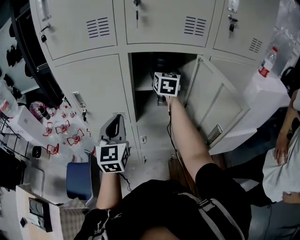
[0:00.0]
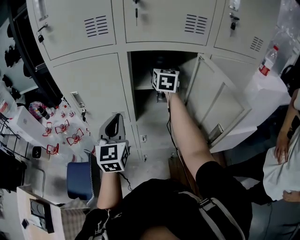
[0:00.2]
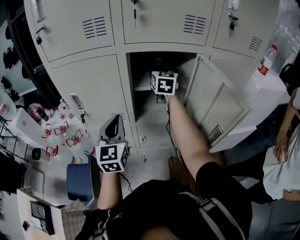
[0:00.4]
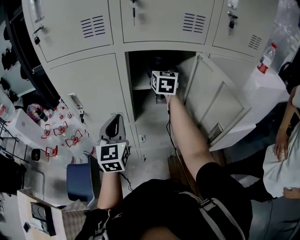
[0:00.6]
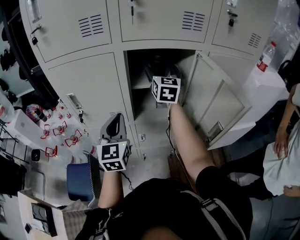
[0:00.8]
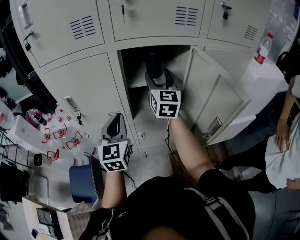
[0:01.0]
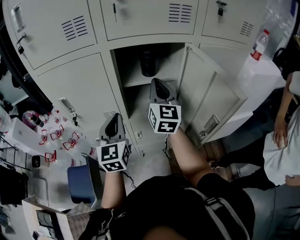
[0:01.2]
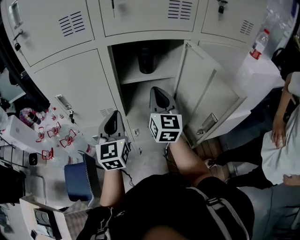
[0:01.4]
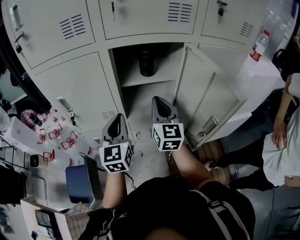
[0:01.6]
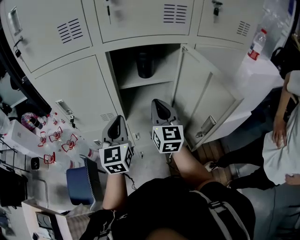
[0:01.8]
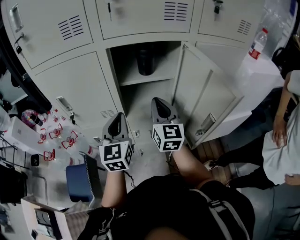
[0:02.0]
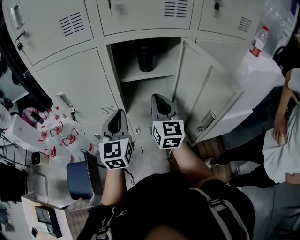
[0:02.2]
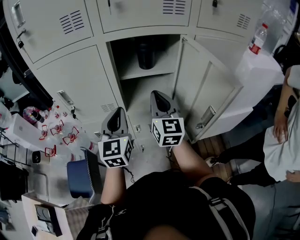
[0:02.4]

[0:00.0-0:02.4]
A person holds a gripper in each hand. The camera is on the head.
0:00.0 to 0:01.2: The right gripper is displaced backward by approximately 15 cm, and closes.
0:01.2 to 0:02.4: The right gripper goes approximately 5 cm backward.

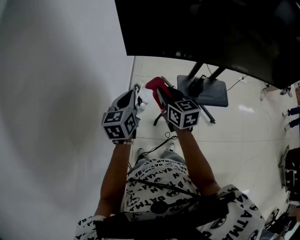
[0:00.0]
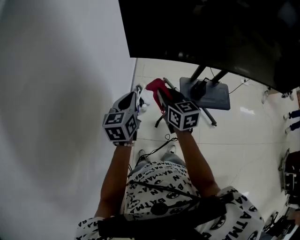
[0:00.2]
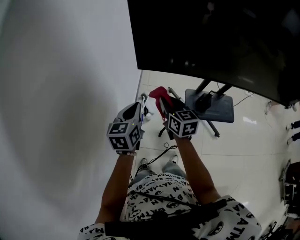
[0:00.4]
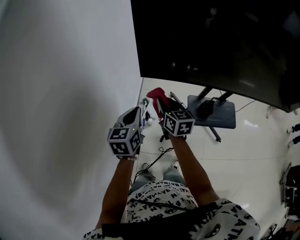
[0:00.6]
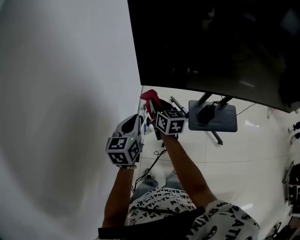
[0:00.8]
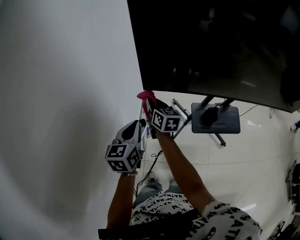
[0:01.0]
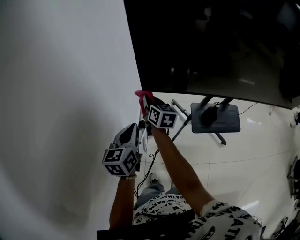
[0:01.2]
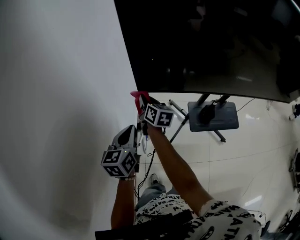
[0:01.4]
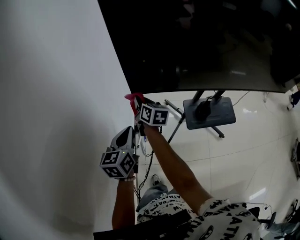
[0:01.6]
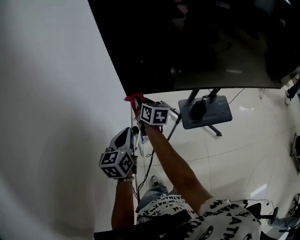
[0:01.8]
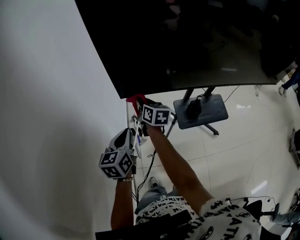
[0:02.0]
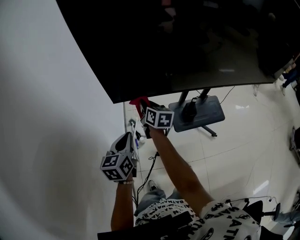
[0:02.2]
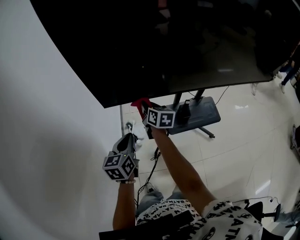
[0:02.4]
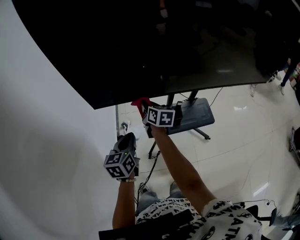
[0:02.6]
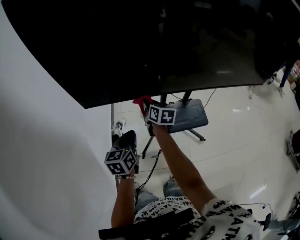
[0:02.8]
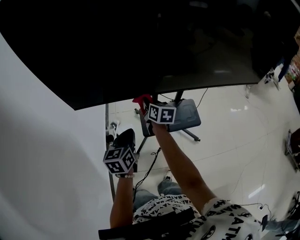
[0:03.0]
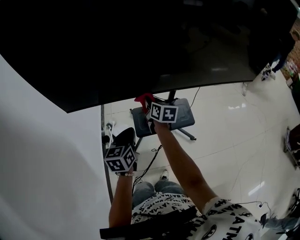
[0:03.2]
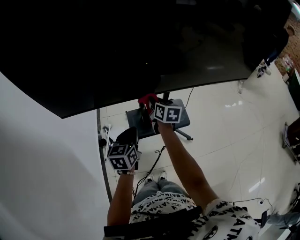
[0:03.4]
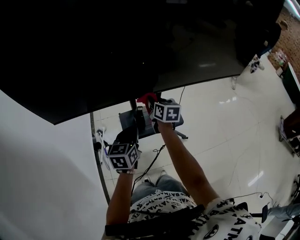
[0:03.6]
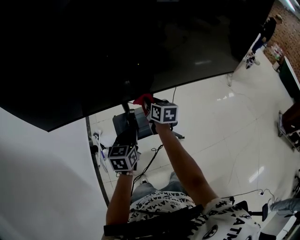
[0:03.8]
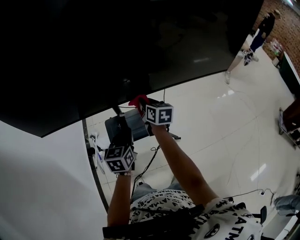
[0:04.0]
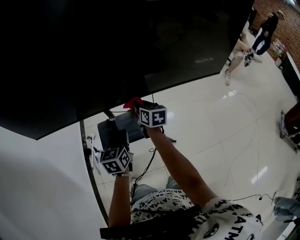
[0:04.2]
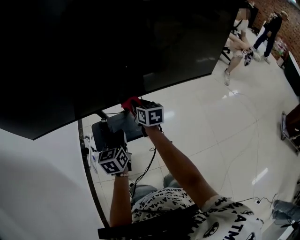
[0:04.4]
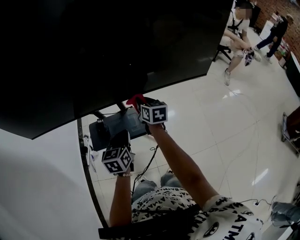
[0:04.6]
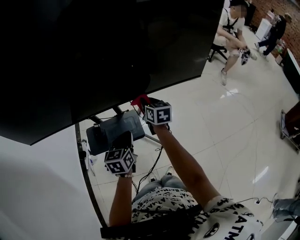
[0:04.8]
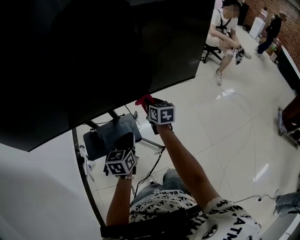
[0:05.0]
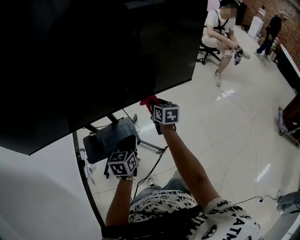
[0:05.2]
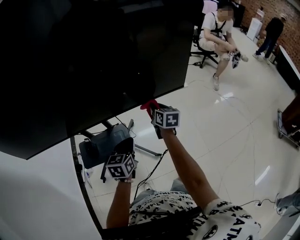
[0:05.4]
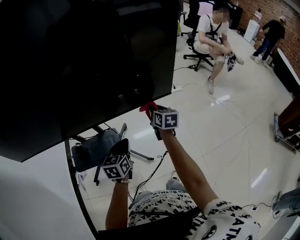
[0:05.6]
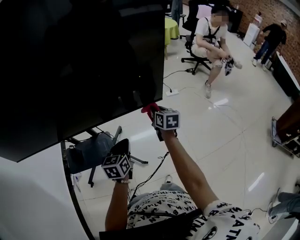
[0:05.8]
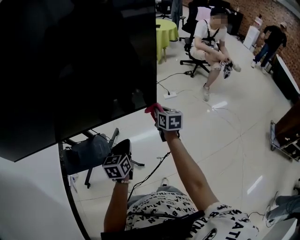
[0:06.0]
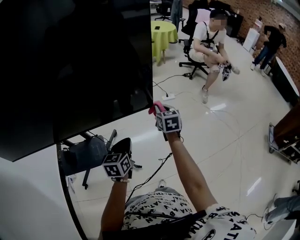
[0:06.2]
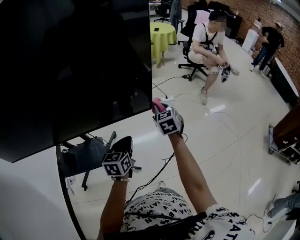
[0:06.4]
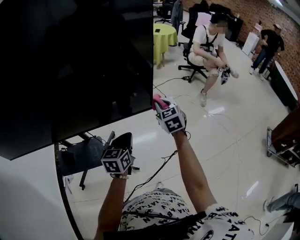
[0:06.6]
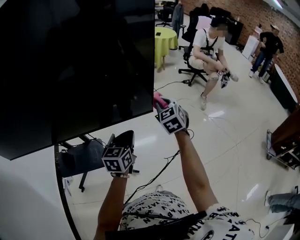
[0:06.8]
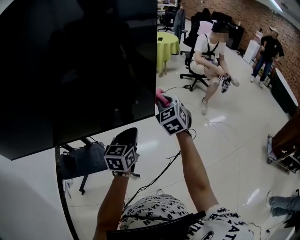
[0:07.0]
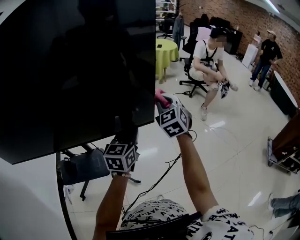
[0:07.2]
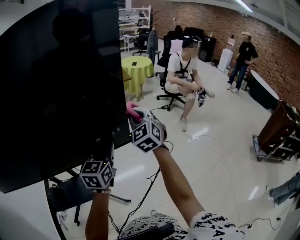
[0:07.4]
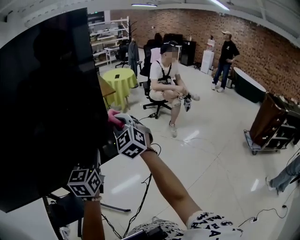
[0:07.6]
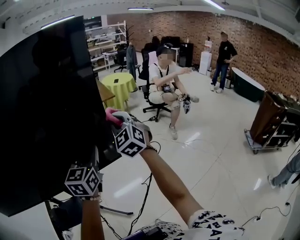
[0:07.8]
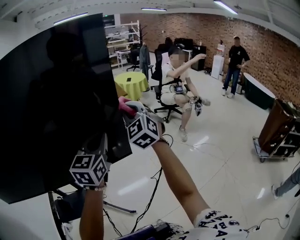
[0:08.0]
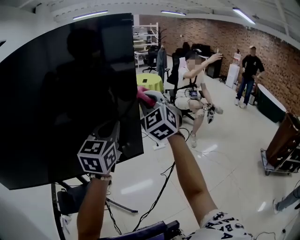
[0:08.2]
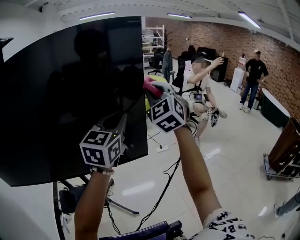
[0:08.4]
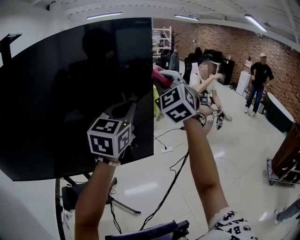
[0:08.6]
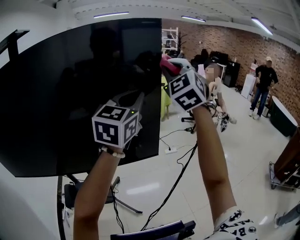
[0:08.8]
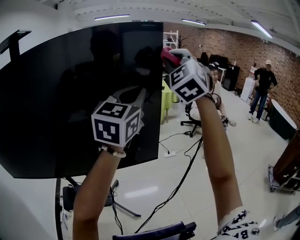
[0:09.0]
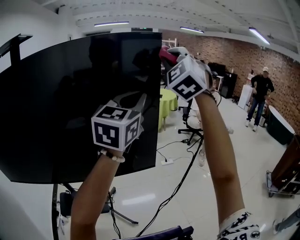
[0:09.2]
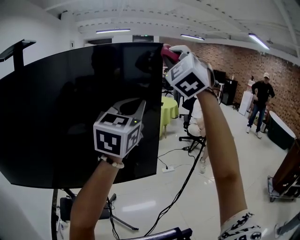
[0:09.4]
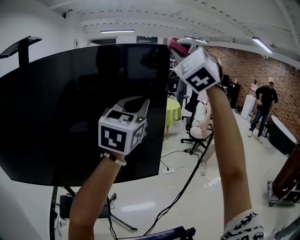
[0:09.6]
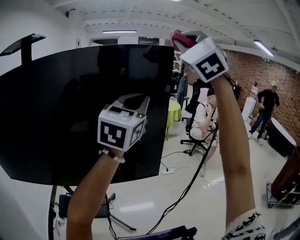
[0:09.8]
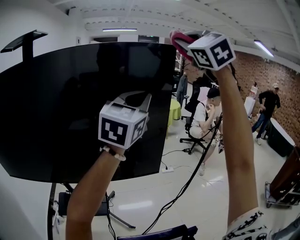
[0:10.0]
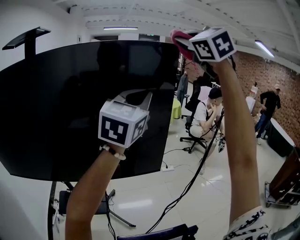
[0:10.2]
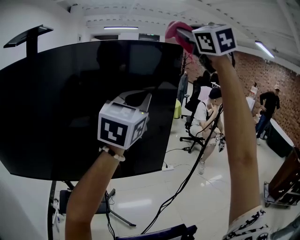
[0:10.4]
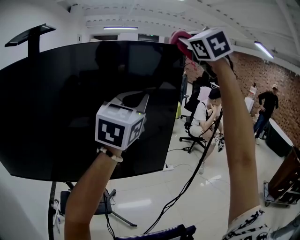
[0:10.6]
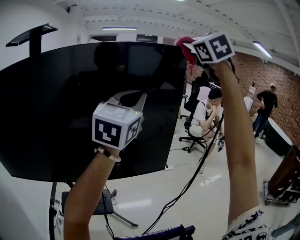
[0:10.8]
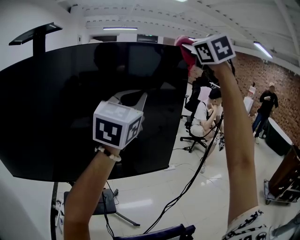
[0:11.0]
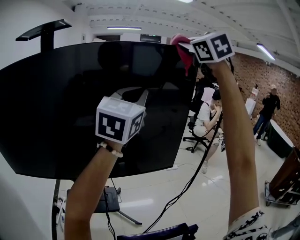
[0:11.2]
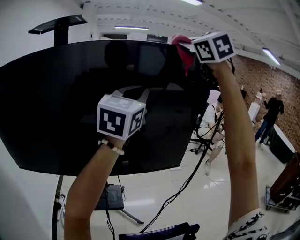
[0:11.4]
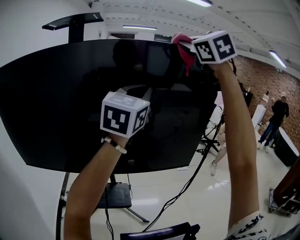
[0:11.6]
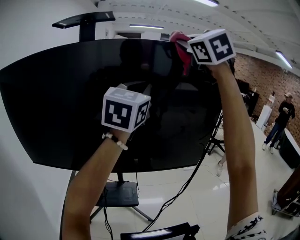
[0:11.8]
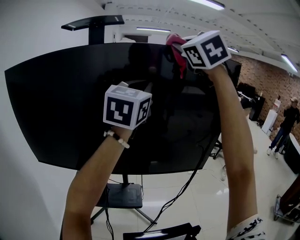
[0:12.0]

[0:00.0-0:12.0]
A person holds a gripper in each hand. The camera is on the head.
0:00.0 to 0:01.6: The right gripper travels forward and to the left by some 20 cm, and rotates some 20 degrees. The left gripper shifts roughly 5 cm to the left.
0:01.6 to 0:03.0: The two grippers go some 35 cm to the right.
0:03.0 to 0:04.4: Both grippers move to the right, about 35 cm.
0:04.4 to 0:06.0: Both grippers move to the right, approximately 35 cm.
0:06.0 to 0:07.6: The two grippers go roughly 25 cm upward. The right gripper rolls counterclockwise, seen from behind, by some 60 degrees; the left gripper swivels roughly 30 degrees.
0:07.6 to 0:09.0: The two grippers go approximately 30 cm upward. The right gripper turns by approximately 30 degrees. The left gripper turns by approximately 20 degrees.
0:09.0 to 0:10.4: The left gripper shifts by roughly 5 cm. The right gripper shifts about 15 cm upward, and swivels approximately 20 degrees.
0:10.4 to 0:12.0: The two grippers go roughly 30 cm to the left.

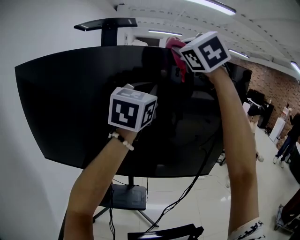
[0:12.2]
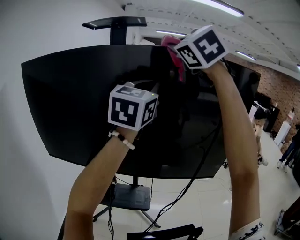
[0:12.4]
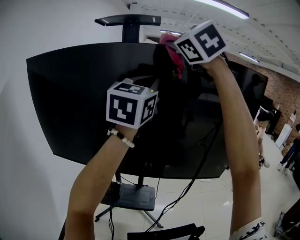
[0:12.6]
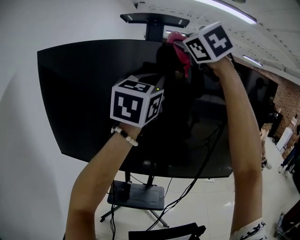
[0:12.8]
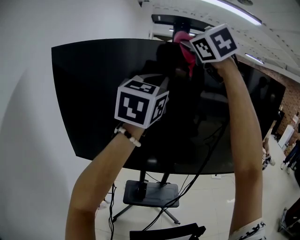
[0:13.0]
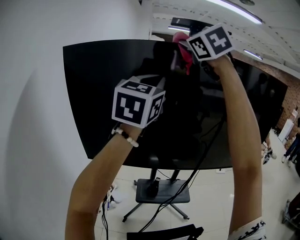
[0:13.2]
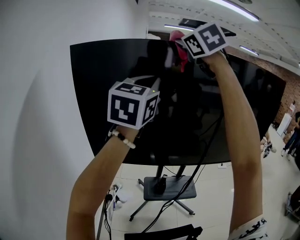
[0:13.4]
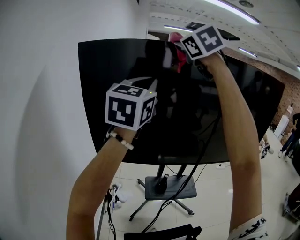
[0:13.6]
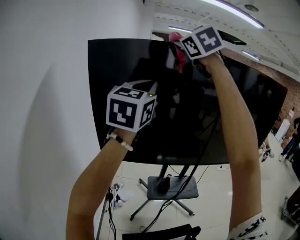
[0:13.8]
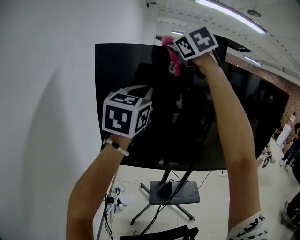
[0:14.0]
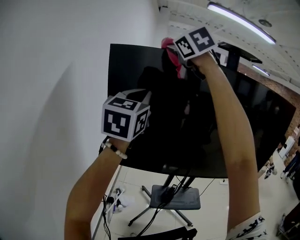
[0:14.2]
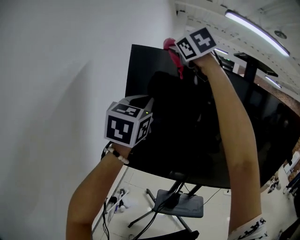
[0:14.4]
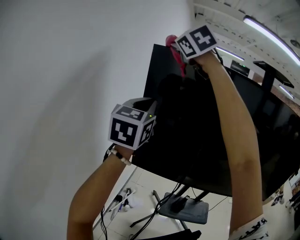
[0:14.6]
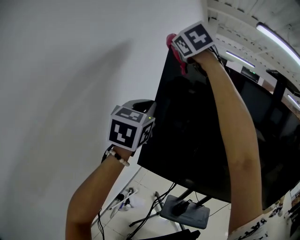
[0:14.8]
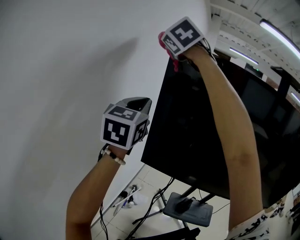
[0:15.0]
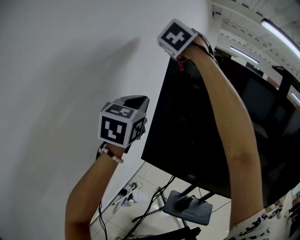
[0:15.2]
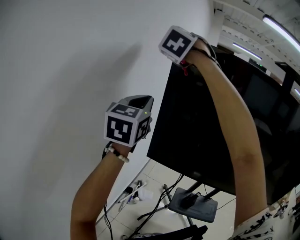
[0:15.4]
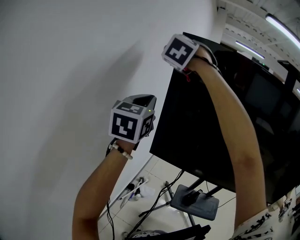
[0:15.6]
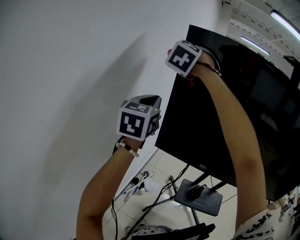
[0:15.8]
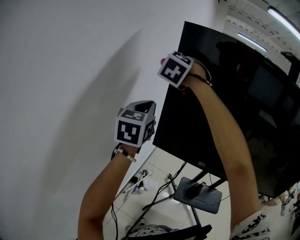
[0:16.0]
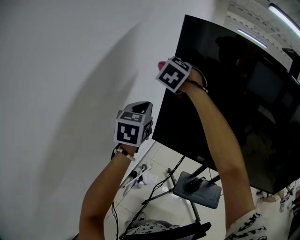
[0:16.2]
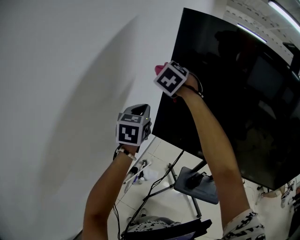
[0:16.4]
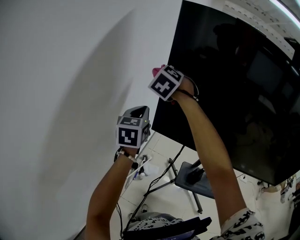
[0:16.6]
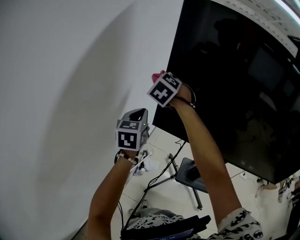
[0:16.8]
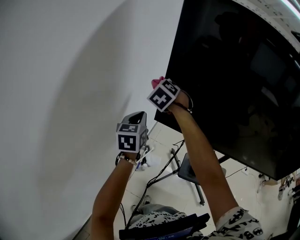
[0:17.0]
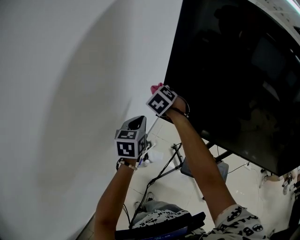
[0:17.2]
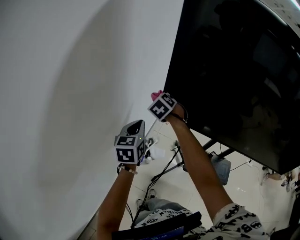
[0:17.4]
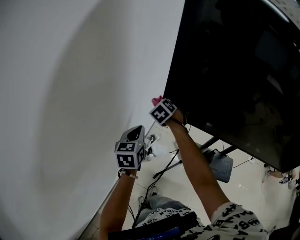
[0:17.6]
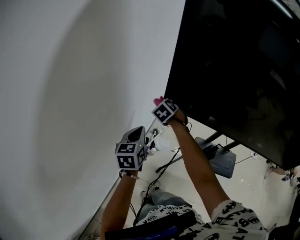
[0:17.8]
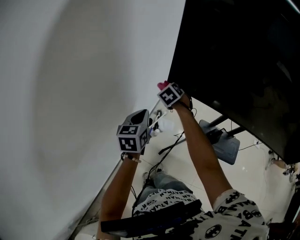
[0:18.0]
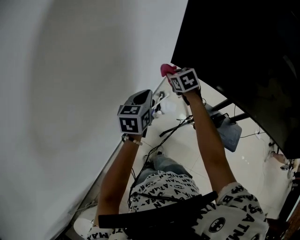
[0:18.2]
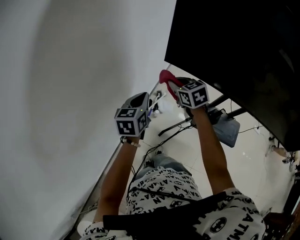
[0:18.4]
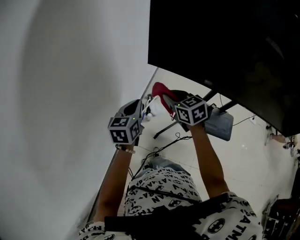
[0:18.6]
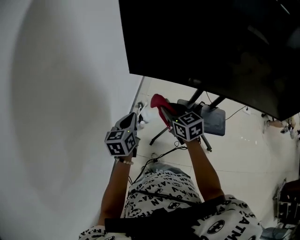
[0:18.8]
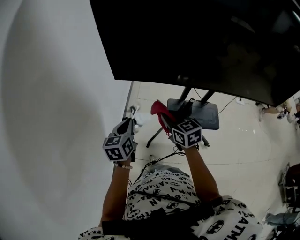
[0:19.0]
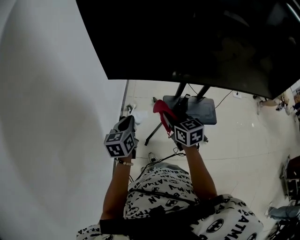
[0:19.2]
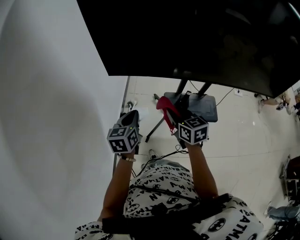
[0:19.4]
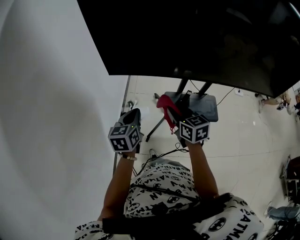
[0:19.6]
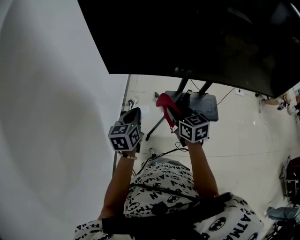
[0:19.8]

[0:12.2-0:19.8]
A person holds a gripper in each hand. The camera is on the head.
0:12.2 to 0:13.8: The pair of grippers is taken to the left, roughly 60 cm.
0:13.8 to 0:15.2: The grippers both shift to the left by approximately 30 cm. The left gripper changes its angle by some 30 degrees, while the right gripper changes its angle by about 30 degrees.
0:15.2 to 0:16.8: The right gripper heads downward, covering approximately 35 cm, and rotates approximately 20 degrees. Meanwhile the left gripper moves downward, approximately 25 cm.
0:16.8 to 0:18.2: The right gripper heads downward, covering roughly 30 cm, and turns by approximately 40 degrees, while the left gripper heads downward and backward, covering about 20 cm.
0:18.2 to 0:19.8: The right gripper is displaced backward and to the right by about 30 cm, and swivels approximately 40 degrees. Meanwhile the left gripper goes roughly 15 cm to the right.

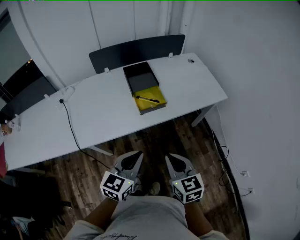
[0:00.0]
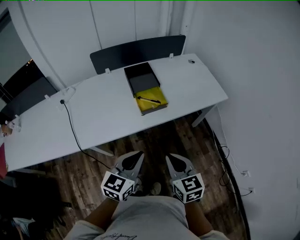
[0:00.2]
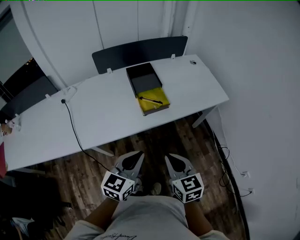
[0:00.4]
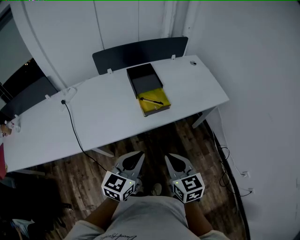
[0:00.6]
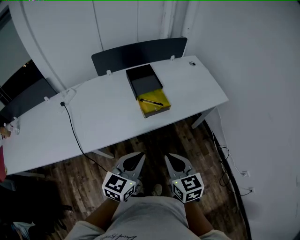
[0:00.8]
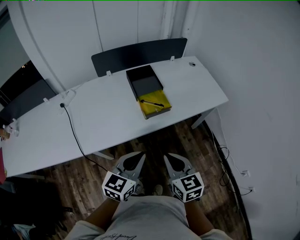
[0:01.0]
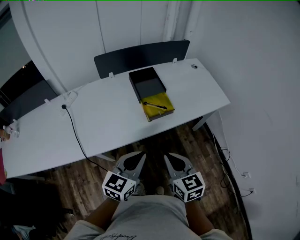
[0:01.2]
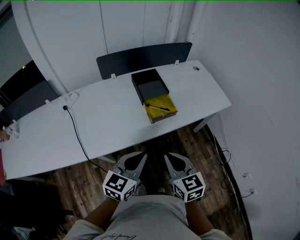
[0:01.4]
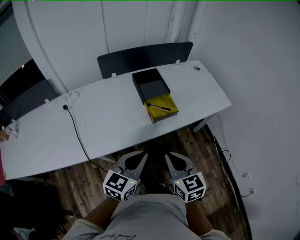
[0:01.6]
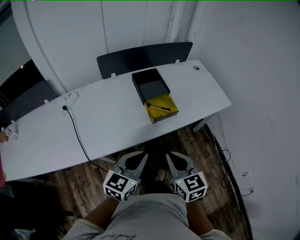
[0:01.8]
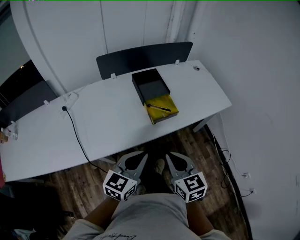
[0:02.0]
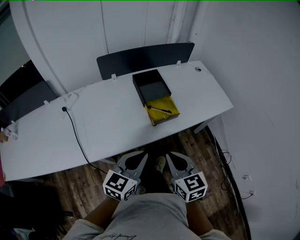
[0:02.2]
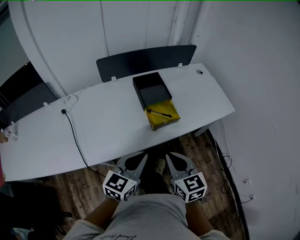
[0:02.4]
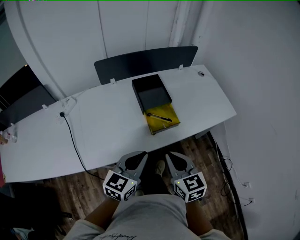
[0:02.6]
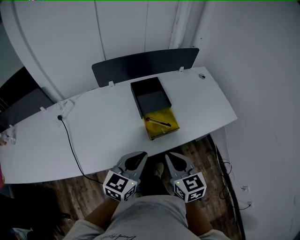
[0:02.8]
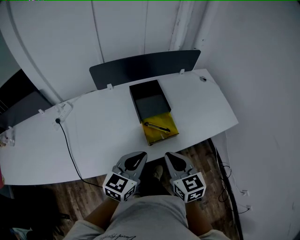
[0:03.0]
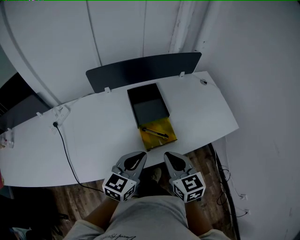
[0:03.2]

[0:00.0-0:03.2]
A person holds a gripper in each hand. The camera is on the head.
0:00.0 to 0:01.6: Both grippers travel together to the left, about 10 cm.
0:01.6 to 0:03.2: Both grippers travel together forward, approximately 20 cm.
